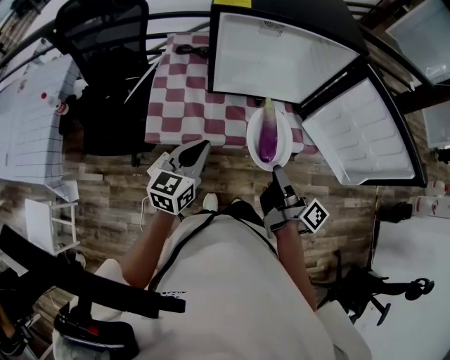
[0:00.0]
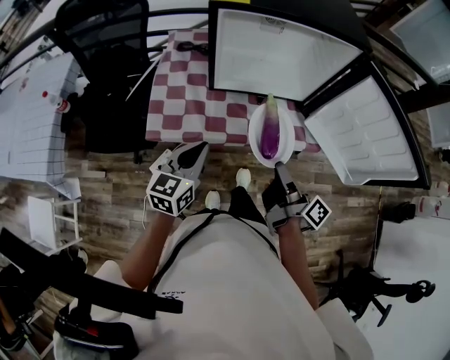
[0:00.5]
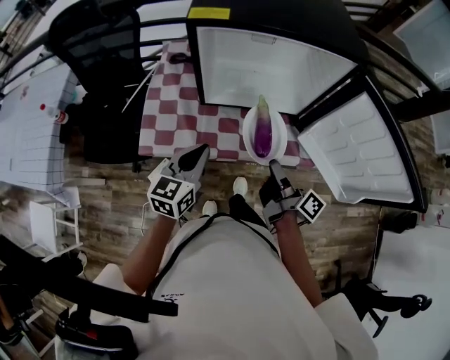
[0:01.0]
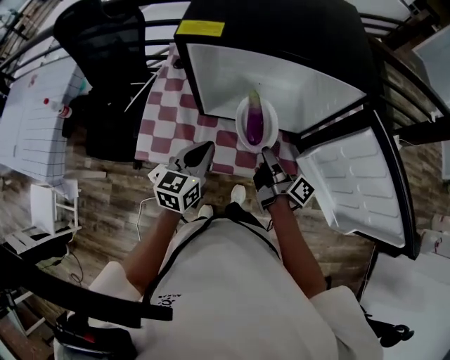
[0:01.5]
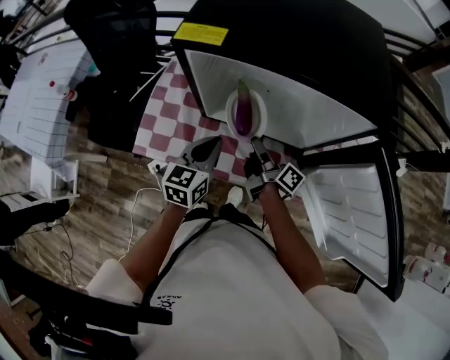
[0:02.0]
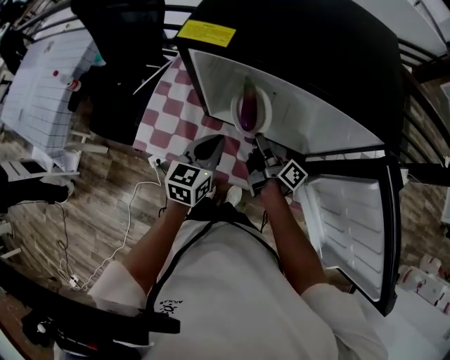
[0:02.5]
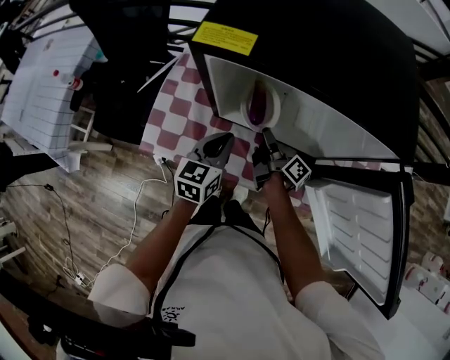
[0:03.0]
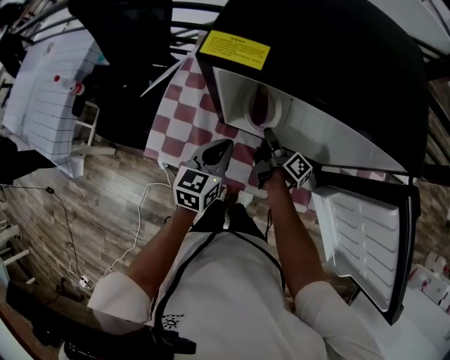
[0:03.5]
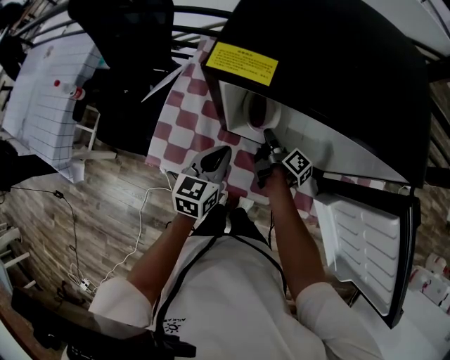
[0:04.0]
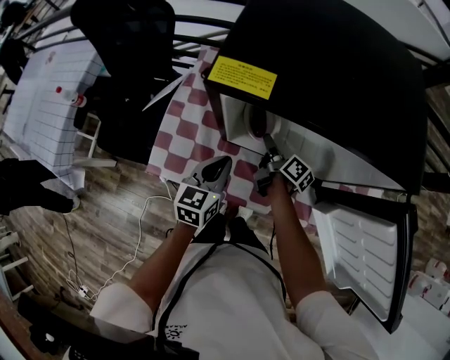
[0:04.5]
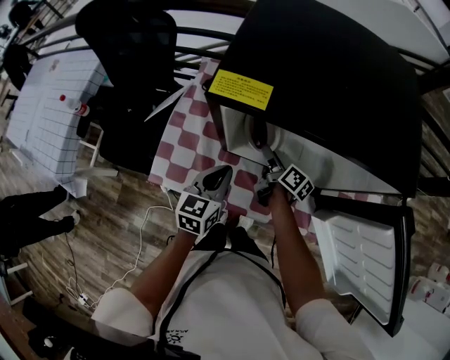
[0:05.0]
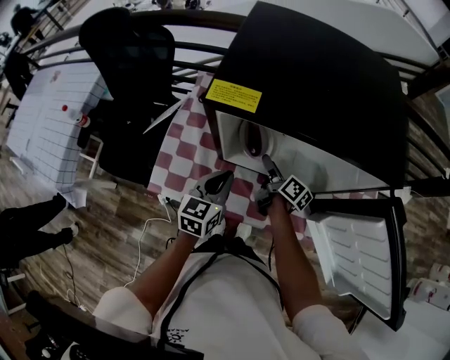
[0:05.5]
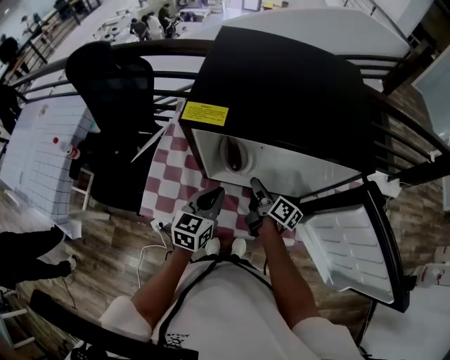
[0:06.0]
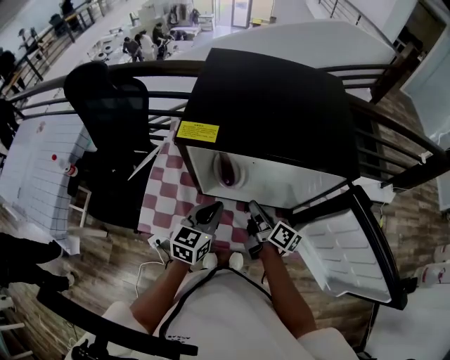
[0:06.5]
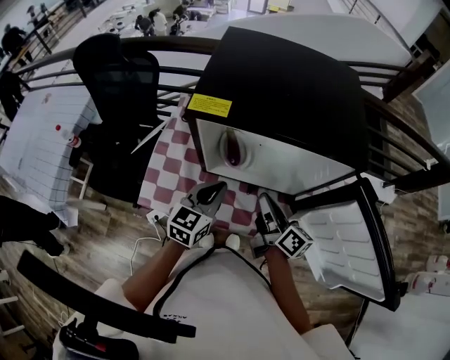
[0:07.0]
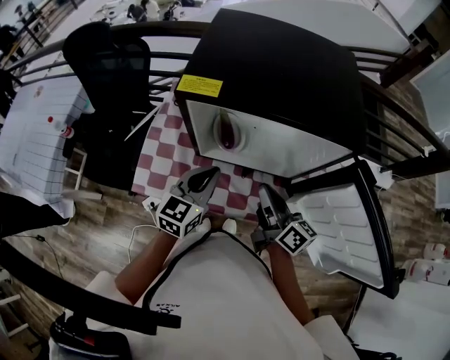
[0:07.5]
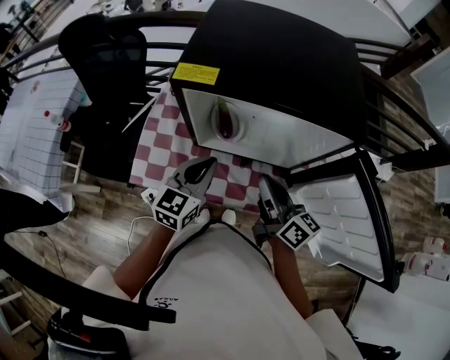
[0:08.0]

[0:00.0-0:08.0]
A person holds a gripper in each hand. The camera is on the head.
0.0 to 2.0 s: The left gripper shifts by roughly 20 cm.
2.0 to 4.0 s: The left gripper shifts by some 5 cm.
4.0 to 6.0 s: The left gripper moves approximately 5 cm.
6.0 to 8.0 s: The left gripper heads upward, covering approximately 5 cm.

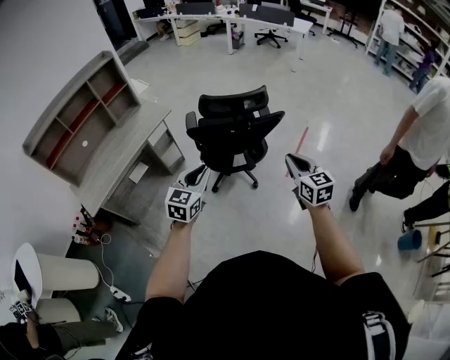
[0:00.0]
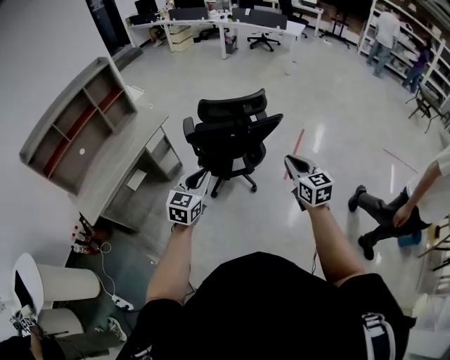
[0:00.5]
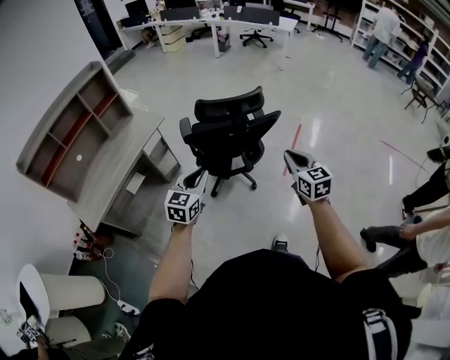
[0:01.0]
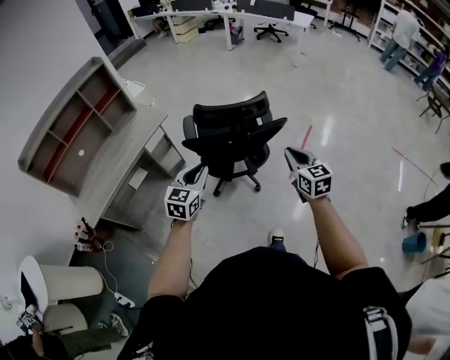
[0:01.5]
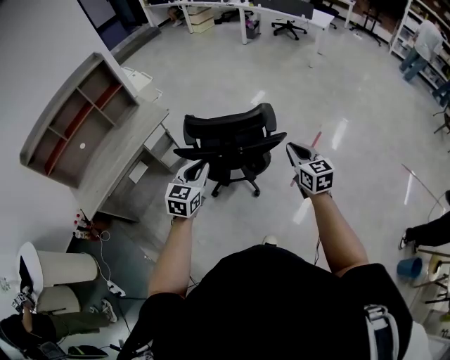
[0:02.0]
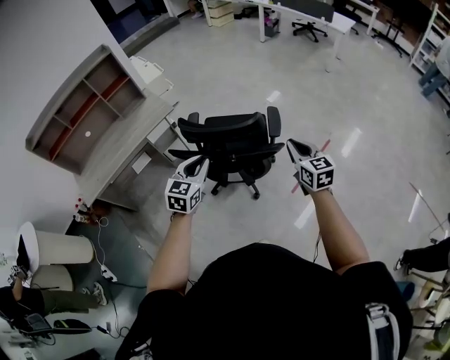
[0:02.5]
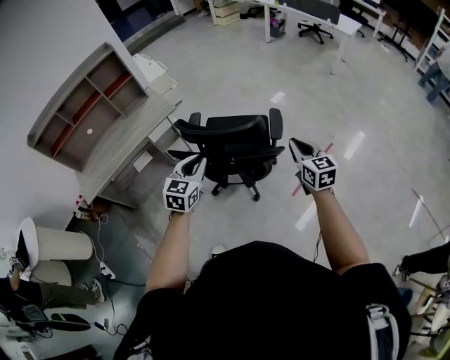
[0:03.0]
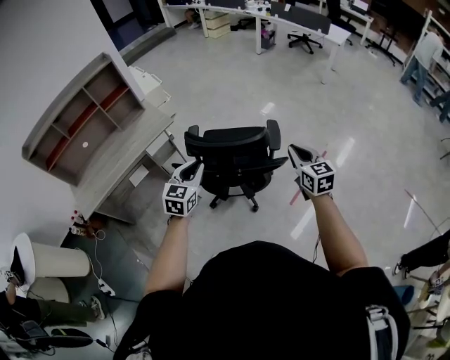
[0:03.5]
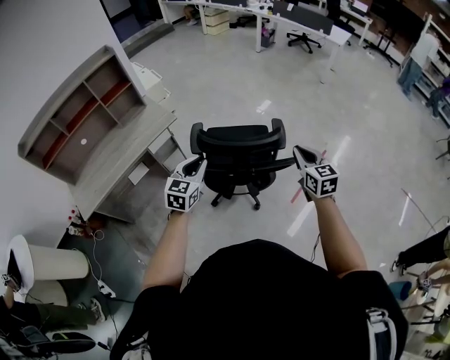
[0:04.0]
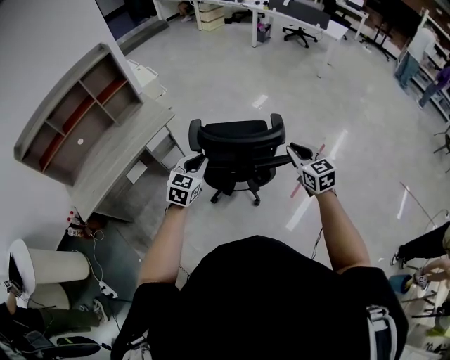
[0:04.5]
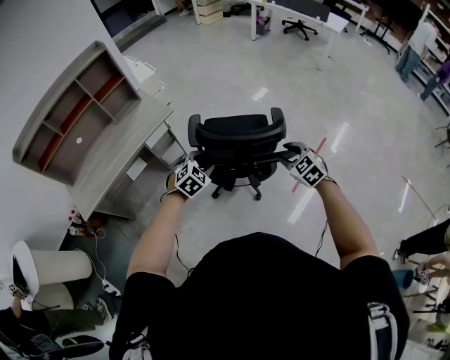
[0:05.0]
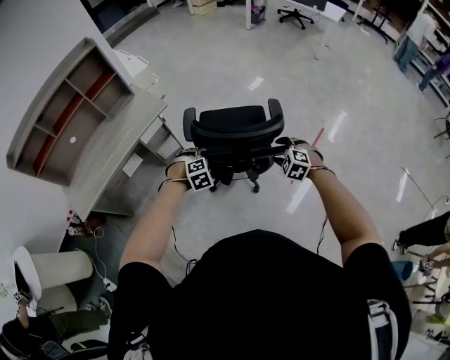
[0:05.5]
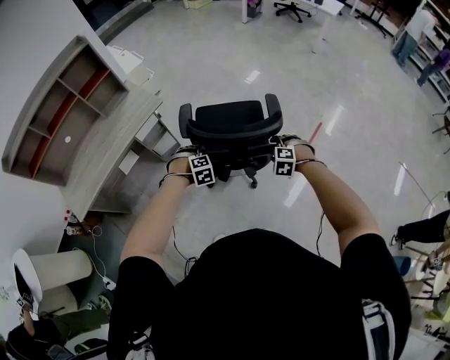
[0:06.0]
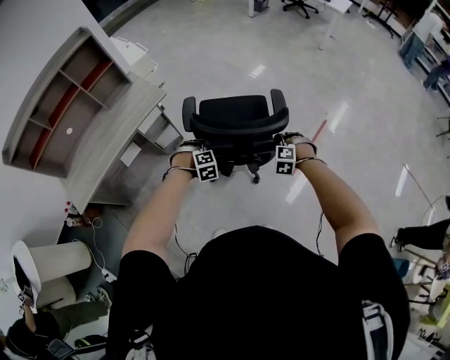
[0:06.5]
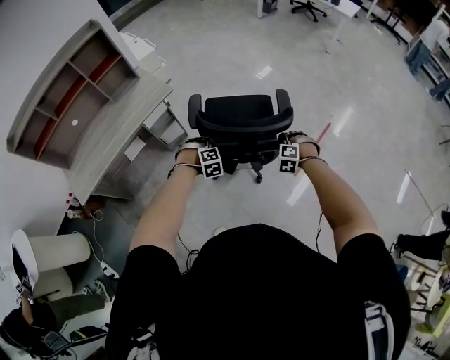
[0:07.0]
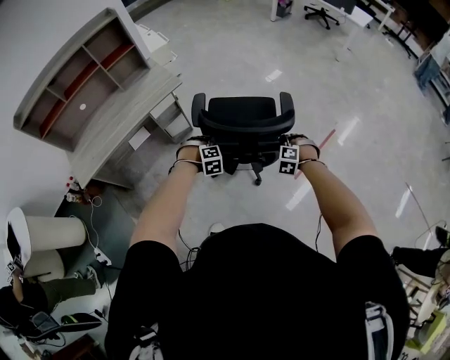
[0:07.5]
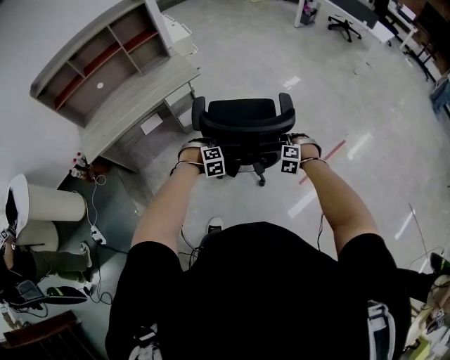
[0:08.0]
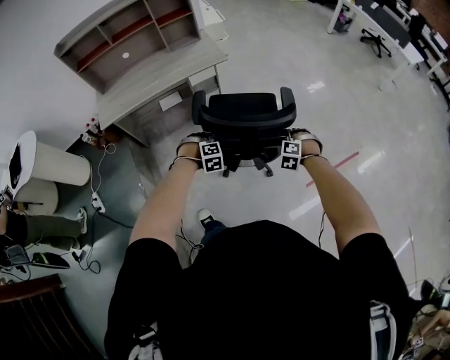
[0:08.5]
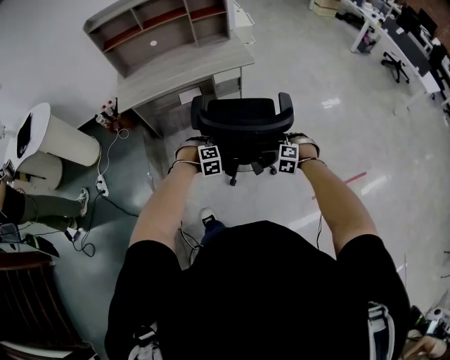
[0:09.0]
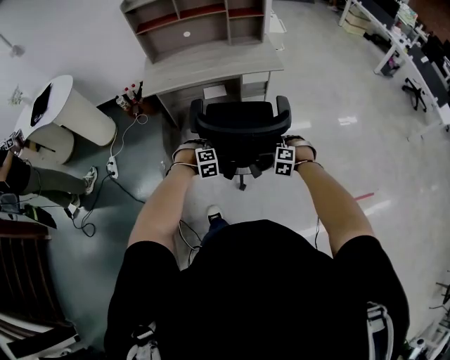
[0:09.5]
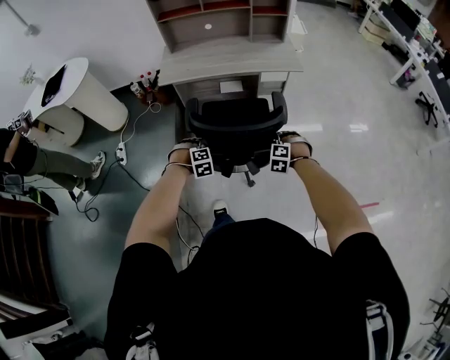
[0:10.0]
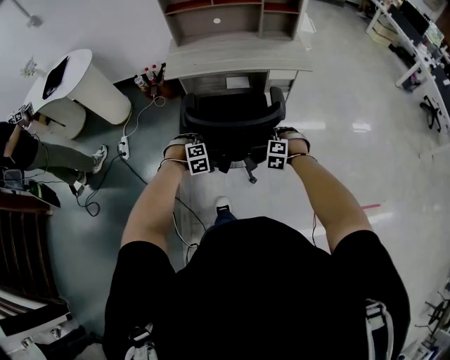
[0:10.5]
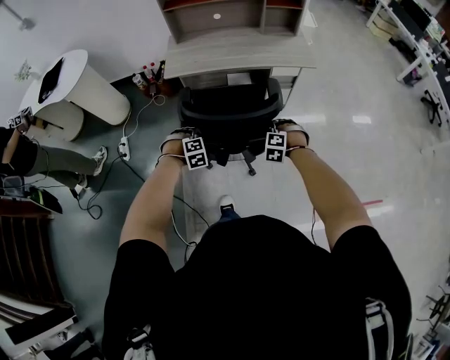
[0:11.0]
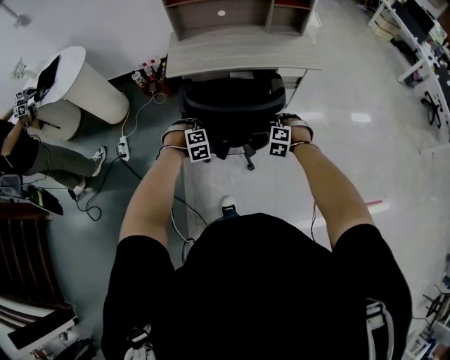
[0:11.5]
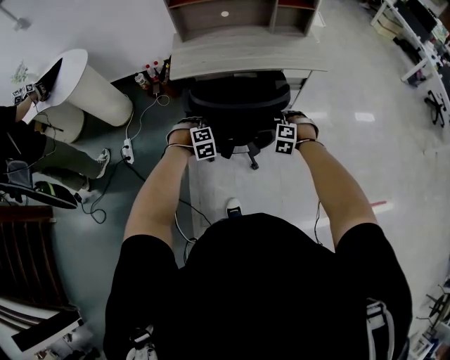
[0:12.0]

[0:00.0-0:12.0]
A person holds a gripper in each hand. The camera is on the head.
0.0 to 2.0 s: The two grippers go approximately 20 cm forward.
2.0 to 4.0 s: The left gripper moves forward and to the left, roughly 10 cm, while the right gripper shifts approximately 10 cm forward.
4.0 to 6.0 s: The two grippers go approximately 25 cm downward. The right gripper tilts its fingers some 50 degrees downward, and opens its fingers. The left gripper tips its fingers downward by about 50 degrees, and opens.
6.0 to 8.0 s: The right gripper closes; the left gripper goes approximately 10 cm backward, and closes up.
8.0 to 10.0 s: The right gripper moves roughly 40 cm, and changes its angle by some 30 degrees. Meanwhile the left gripper shifts by roughly 40 cm, and swivels approximately 30 degrees.
10.0 to 12.0 s: The grippers both shift forward and to the left by about 20 cm.

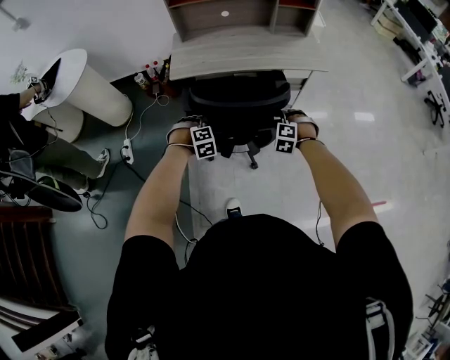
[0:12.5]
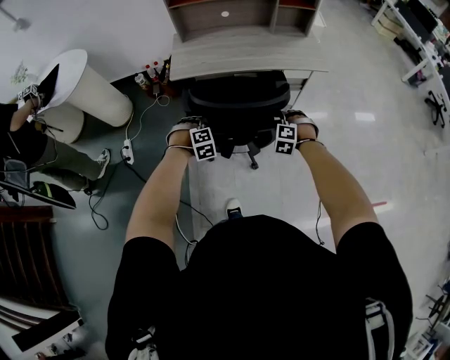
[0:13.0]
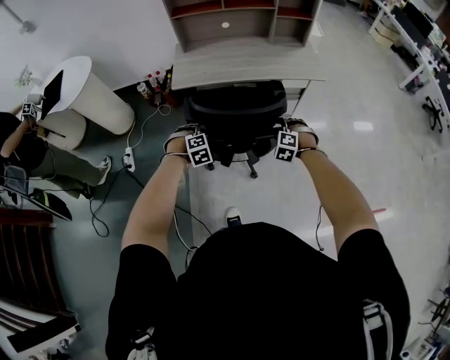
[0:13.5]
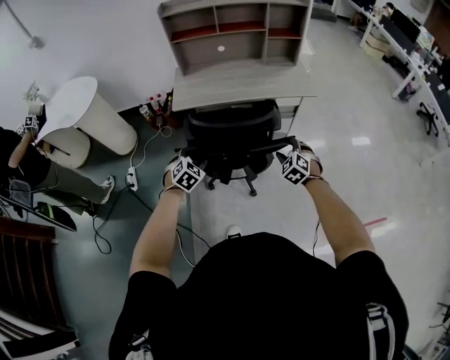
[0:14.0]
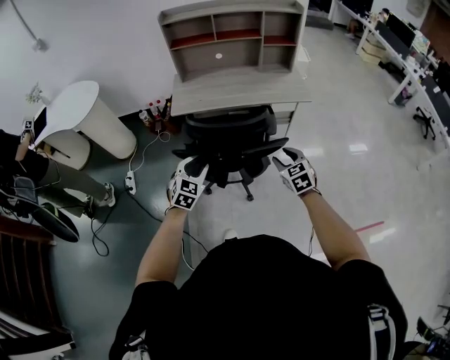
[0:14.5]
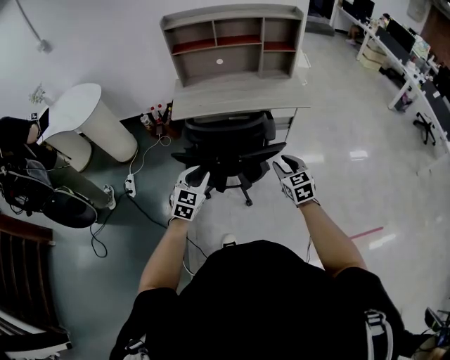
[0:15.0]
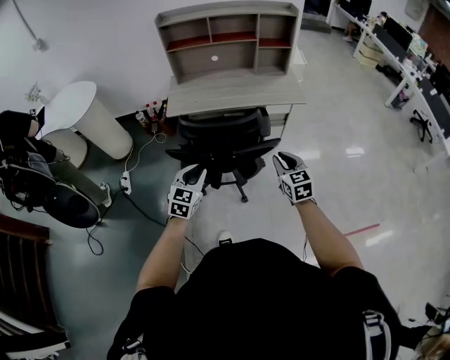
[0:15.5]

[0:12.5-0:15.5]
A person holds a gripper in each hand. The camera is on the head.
12.5 to 14.0 s: The two grippers go about 10 cm upward and backward. The right gripper swivels about 30 degrees. The left gripper turns by about 40 degrees, and opens up.
14.0 to 15.5 s: The left gripper heads upward, backward and to the right, covering some 15 cm, rotates approximately 30 degrees, and closes. Meanwhile the right gripper shifts approximately 10 cm upward and backward, turns by some 40 degrees, and closes up.

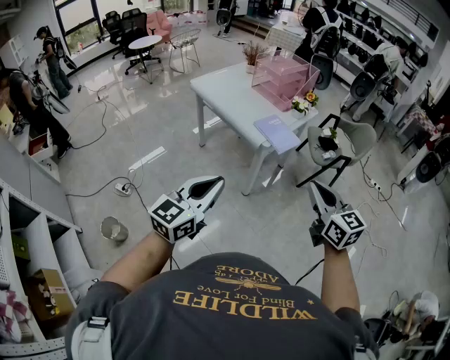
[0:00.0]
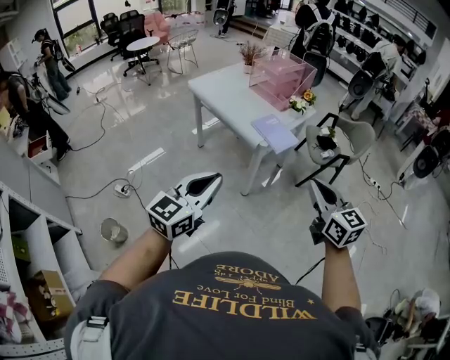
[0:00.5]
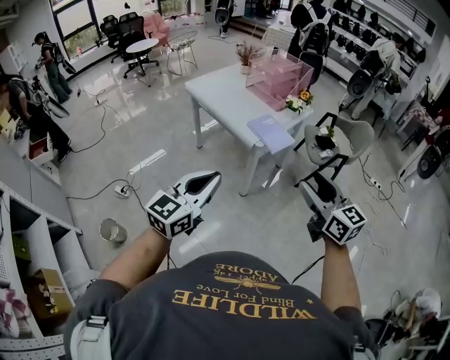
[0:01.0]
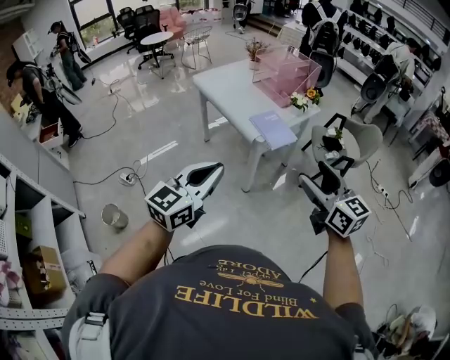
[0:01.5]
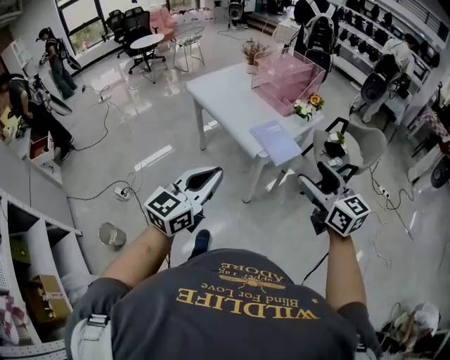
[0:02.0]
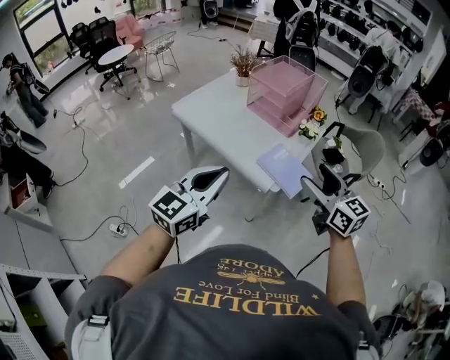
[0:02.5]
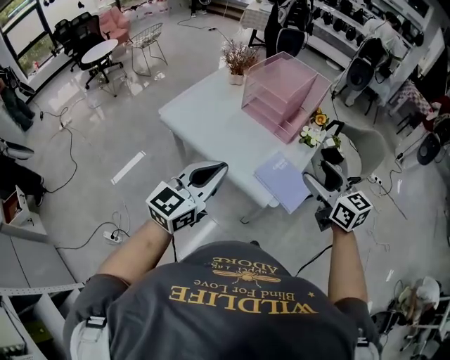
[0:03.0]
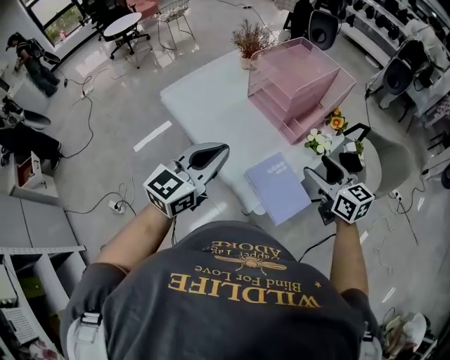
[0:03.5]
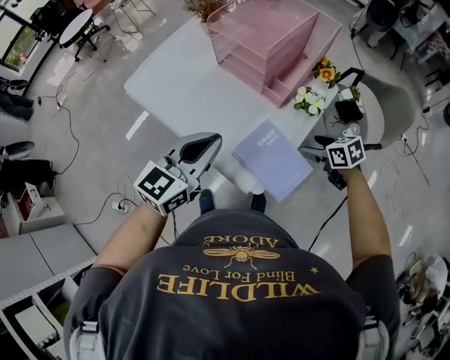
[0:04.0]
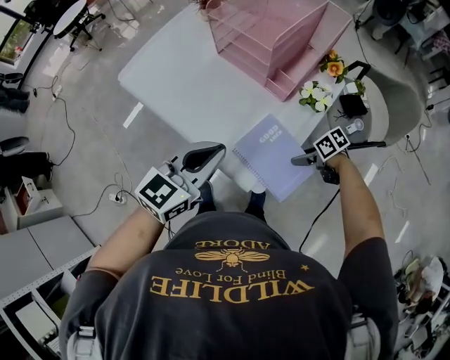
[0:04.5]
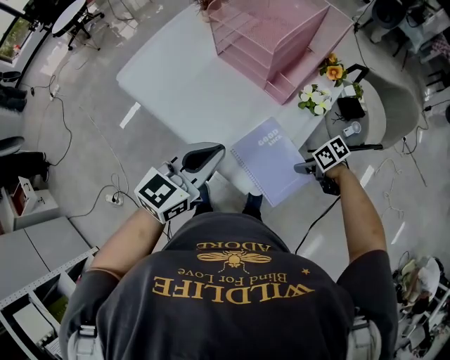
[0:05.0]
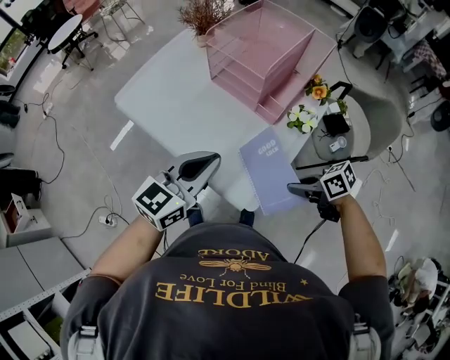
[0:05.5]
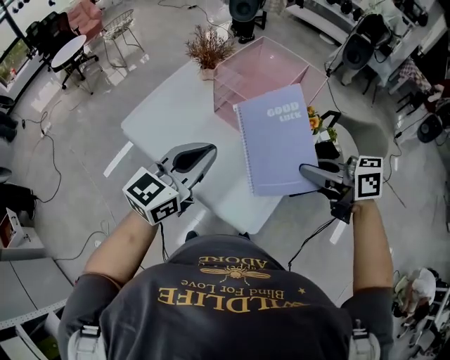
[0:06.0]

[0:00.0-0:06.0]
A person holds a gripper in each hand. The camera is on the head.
0.0 to 2.0 s: The grippers both shift forward by approximately 15 cm. The right gripper opens.
2.0 to 4.0 s: Both grippers are carried forward, roughly 50 cm. The right gripper moves downward, some 30 cm, and tilts its fingers roughly 40 degrees downward.
4.0 to 6.0 s: The left gripper travels upward by approximately 10 cm. Meanwhile the right gripper is displaced upward by about 25 cm, turns by some 30 degrees, and closes up.
